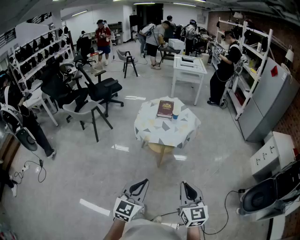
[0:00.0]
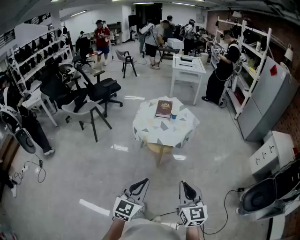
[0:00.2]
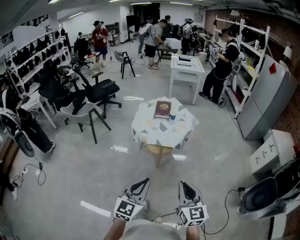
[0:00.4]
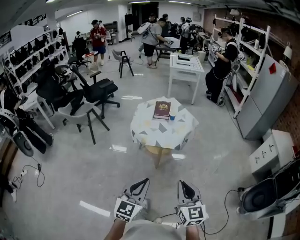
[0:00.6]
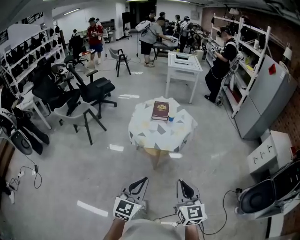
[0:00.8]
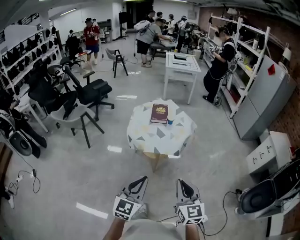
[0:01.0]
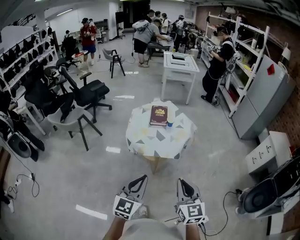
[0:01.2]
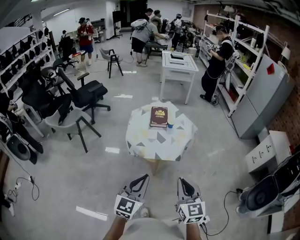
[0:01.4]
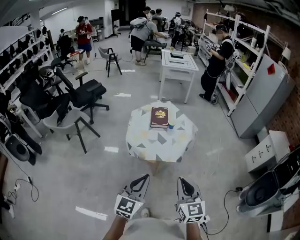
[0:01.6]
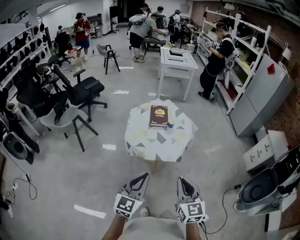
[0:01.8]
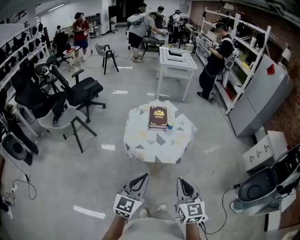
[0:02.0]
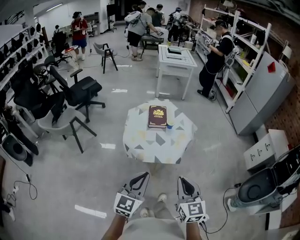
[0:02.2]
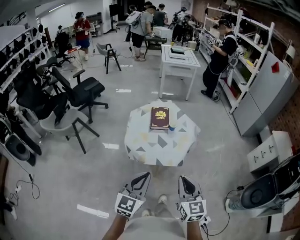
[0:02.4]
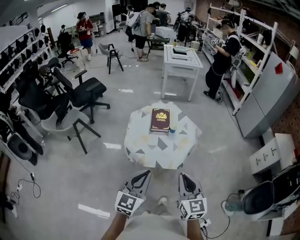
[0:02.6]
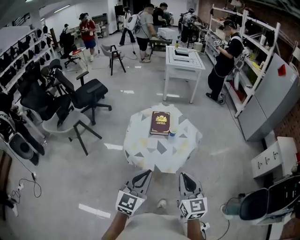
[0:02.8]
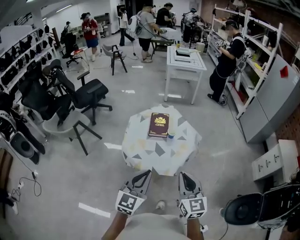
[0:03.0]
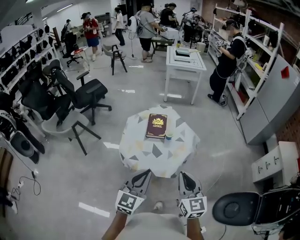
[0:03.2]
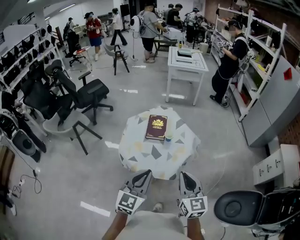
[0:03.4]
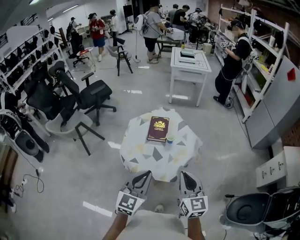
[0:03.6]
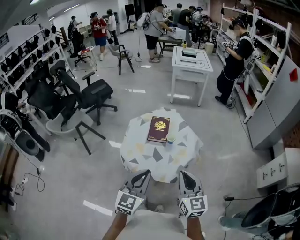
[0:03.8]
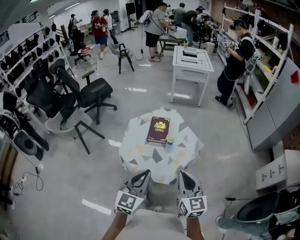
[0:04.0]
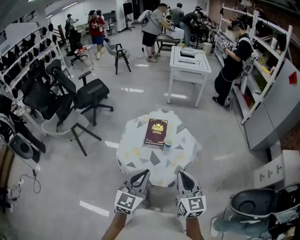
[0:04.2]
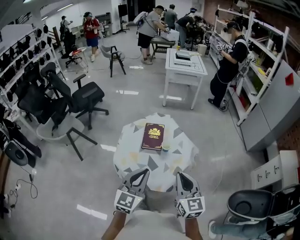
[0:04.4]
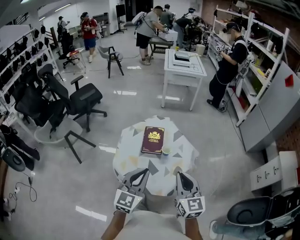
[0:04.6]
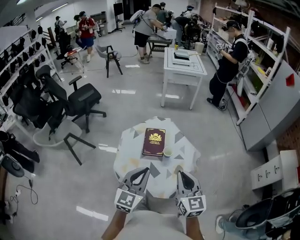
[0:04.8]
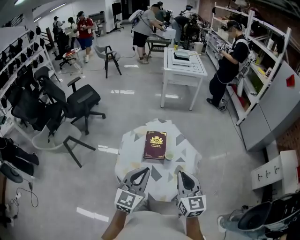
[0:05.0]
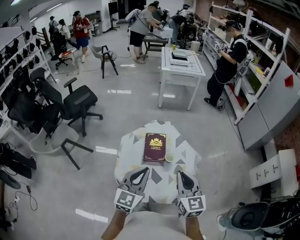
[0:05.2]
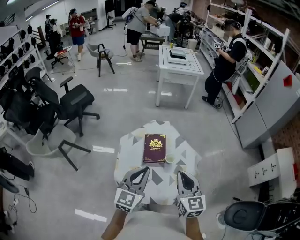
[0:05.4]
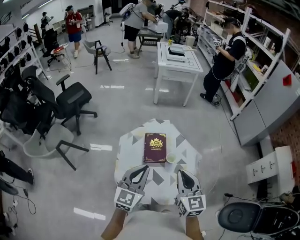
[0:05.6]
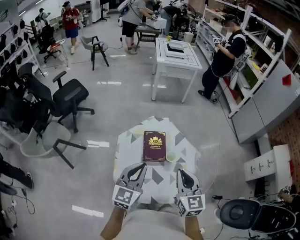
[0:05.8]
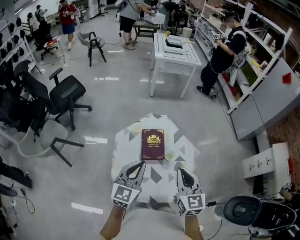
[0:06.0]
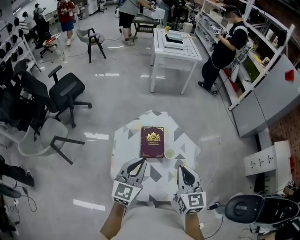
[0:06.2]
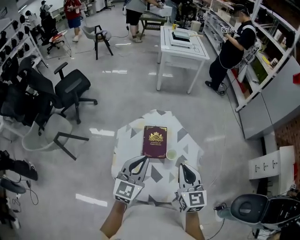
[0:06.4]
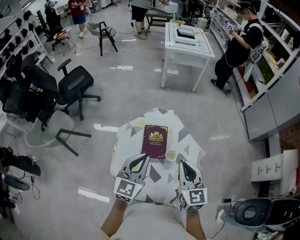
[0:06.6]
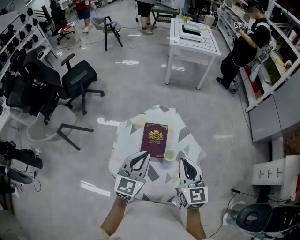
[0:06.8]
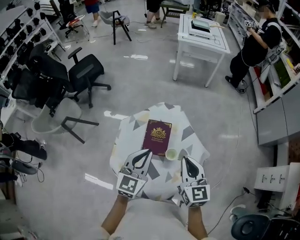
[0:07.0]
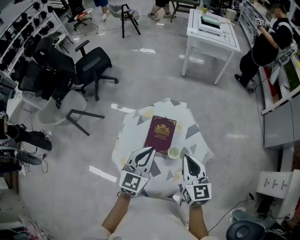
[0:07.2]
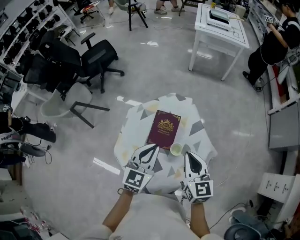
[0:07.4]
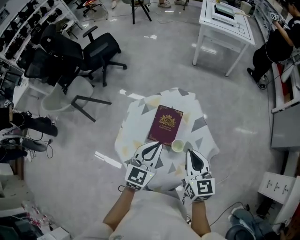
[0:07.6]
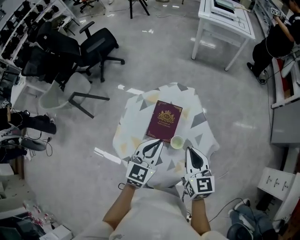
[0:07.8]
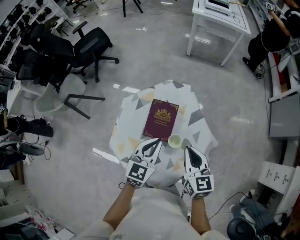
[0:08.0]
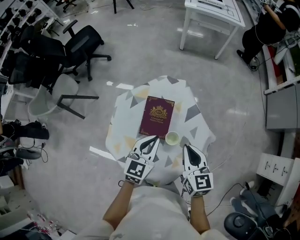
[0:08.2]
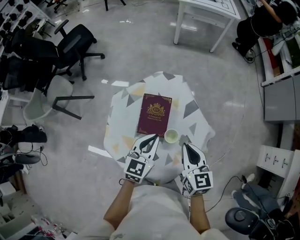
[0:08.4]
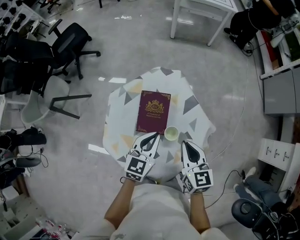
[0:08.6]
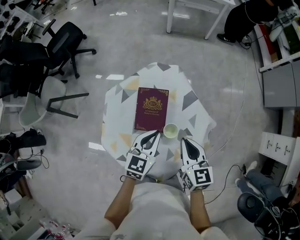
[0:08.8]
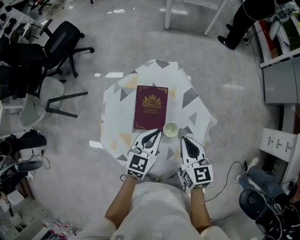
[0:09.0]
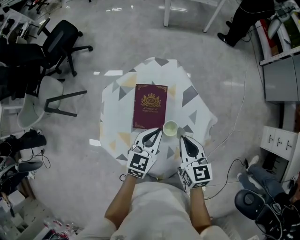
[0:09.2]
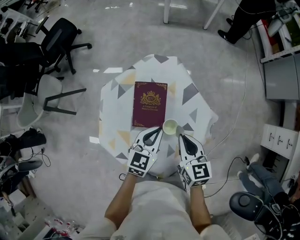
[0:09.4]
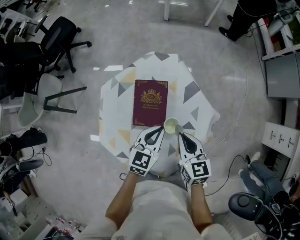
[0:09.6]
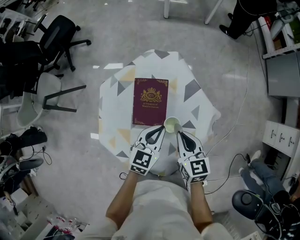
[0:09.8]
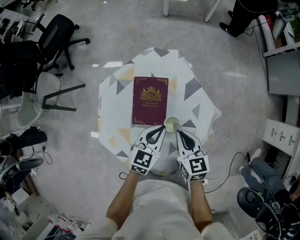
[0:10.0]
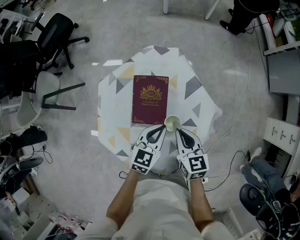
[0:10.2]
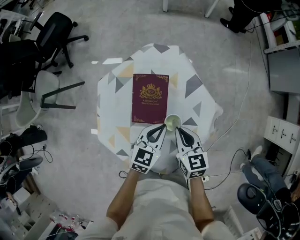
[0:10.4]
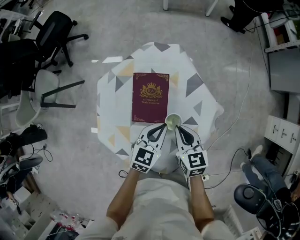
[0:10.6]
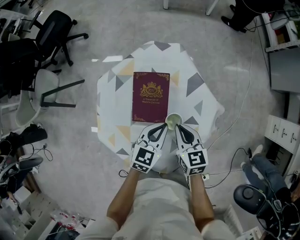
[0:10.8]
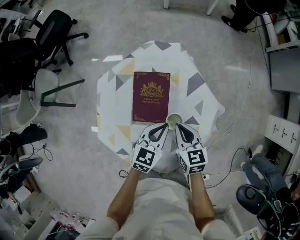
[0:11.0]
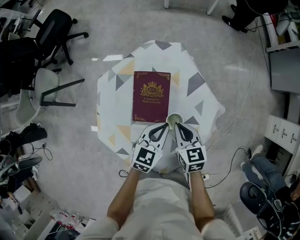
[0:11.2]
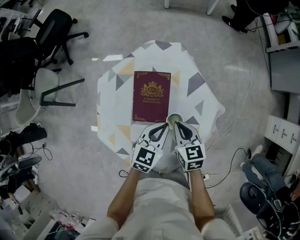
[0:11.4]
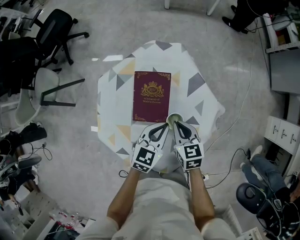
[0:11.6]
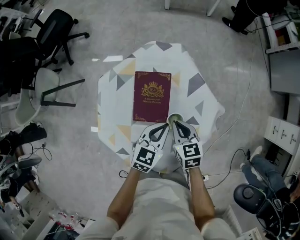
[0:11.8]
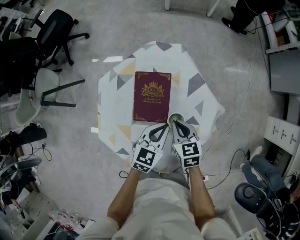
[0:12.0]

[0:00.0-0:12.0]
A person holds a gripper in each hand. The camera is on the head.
0:00.0 to 0:01.6: The right gripper heads forward and to the left, covering about 20 cm; the left gripper is displaced forward by approximately 20 cm.
0:01.6 to 0:03.0: Both grippers move forward, about 15 cm.
0:03.0 to 0:04.4: The two grippers go some 10 cm forward.
0:04.4 to 0:06.0: The grippers both shift forward and to the left by roughly 20 cm.
0:06.0 to 0:07.6: The right gripper heads forward, downward and to the right, covering approximately 15 cm, and rotates some 20 degrees, while the left gripper heads to the right, forward and downward, covering some 15 cm.
0:07.6 to 0:09.0: The grippers both shift downward by about 10 cm.
0:09.0 to 0:10.4: Both grippers travel together downward, approximately 5 cm.
0:10.4 to 0:12.0: The right gripper shifts by some 5 cm.

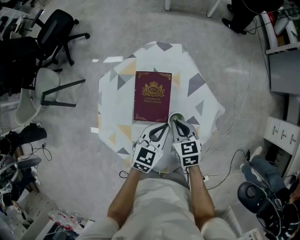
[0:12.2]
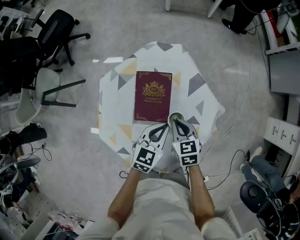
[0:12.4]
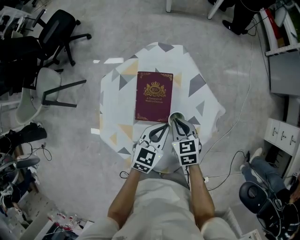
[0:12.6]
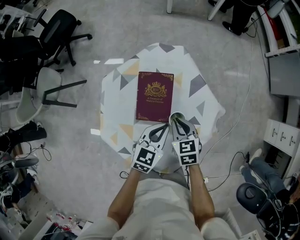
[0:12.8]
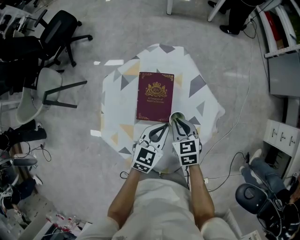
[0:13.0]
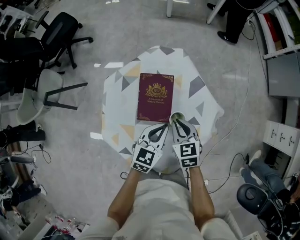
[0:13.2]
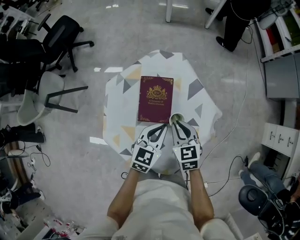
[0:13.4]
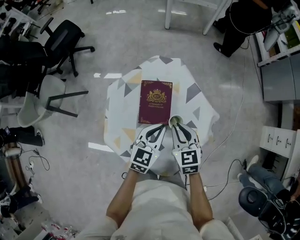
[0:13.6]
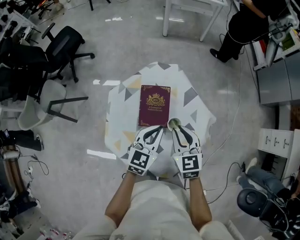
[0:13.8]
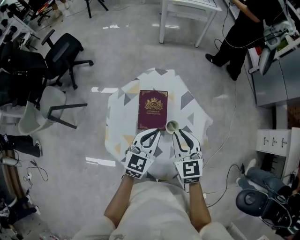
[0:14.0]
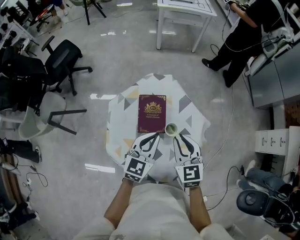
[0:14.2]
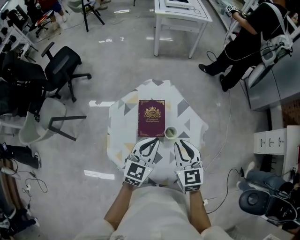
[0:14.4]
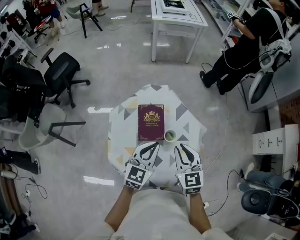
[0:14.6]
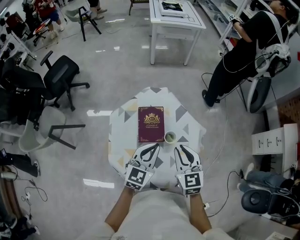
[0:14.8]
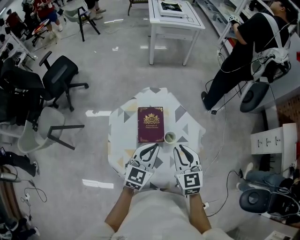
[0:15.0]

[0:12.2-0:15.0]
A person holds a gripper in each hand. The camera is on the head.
0:12.2 to 0:13.6: The two grippers go approximately 10 cm upward.
0:13.6 to 0:15.0: The left gripper is displaced upward by roughly 10 cm; the right gripper moves upward and backward, approximately 15 cm.

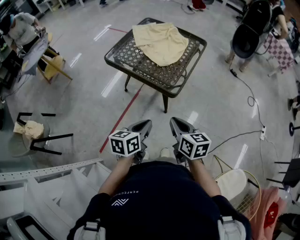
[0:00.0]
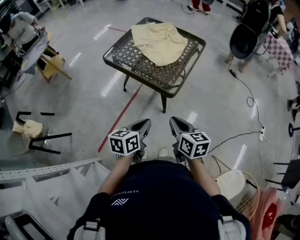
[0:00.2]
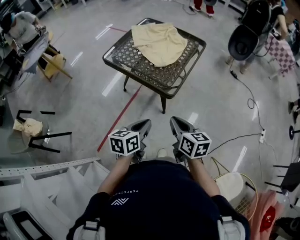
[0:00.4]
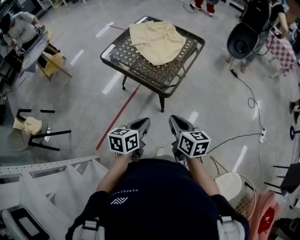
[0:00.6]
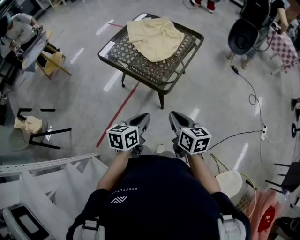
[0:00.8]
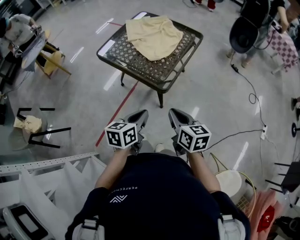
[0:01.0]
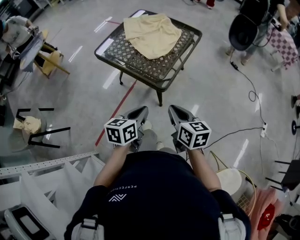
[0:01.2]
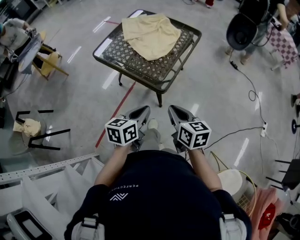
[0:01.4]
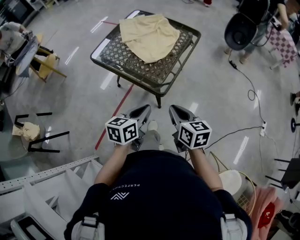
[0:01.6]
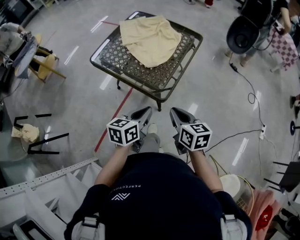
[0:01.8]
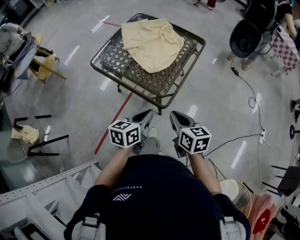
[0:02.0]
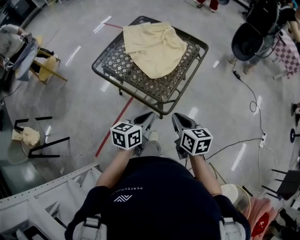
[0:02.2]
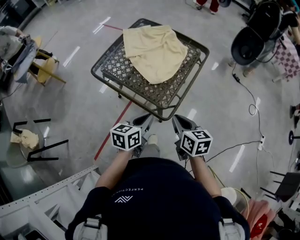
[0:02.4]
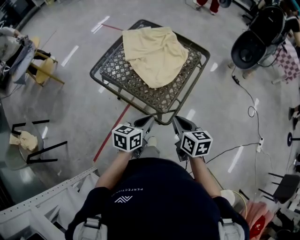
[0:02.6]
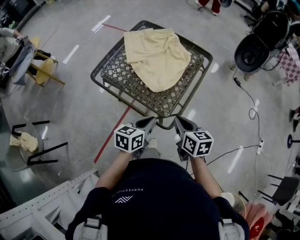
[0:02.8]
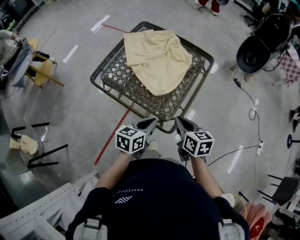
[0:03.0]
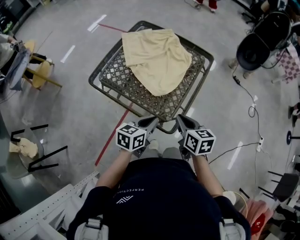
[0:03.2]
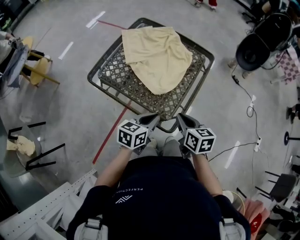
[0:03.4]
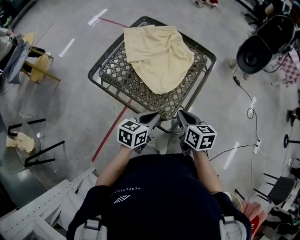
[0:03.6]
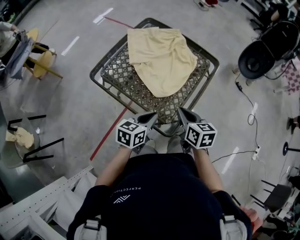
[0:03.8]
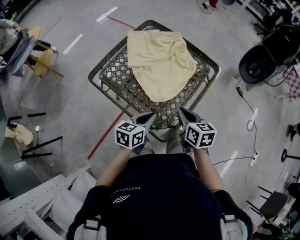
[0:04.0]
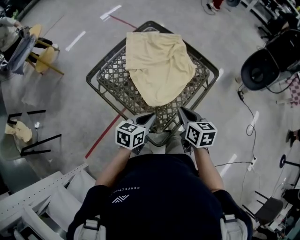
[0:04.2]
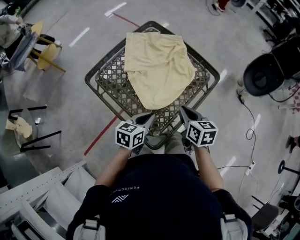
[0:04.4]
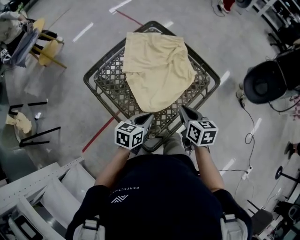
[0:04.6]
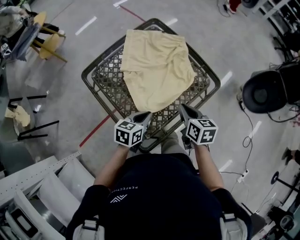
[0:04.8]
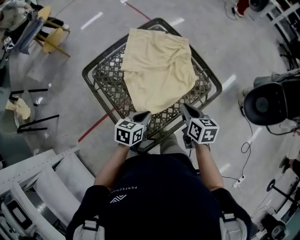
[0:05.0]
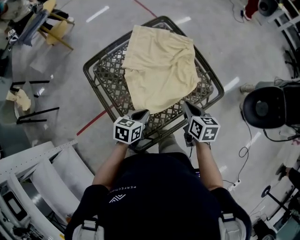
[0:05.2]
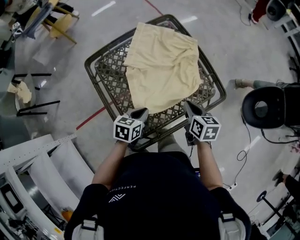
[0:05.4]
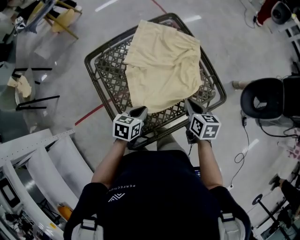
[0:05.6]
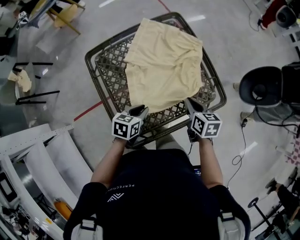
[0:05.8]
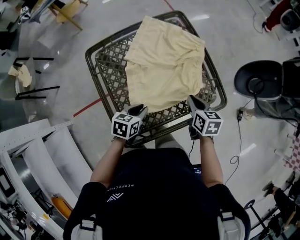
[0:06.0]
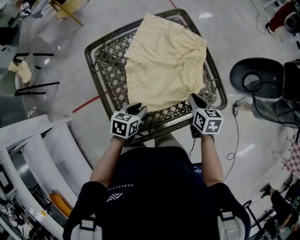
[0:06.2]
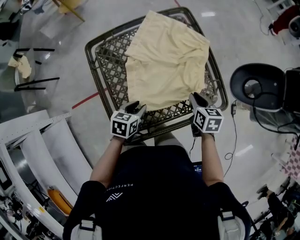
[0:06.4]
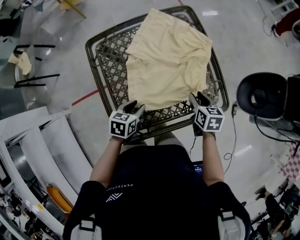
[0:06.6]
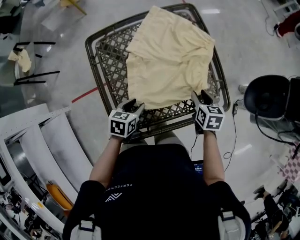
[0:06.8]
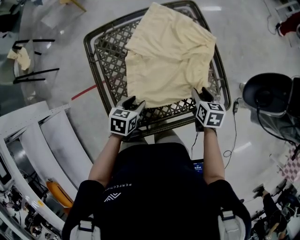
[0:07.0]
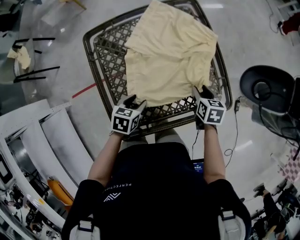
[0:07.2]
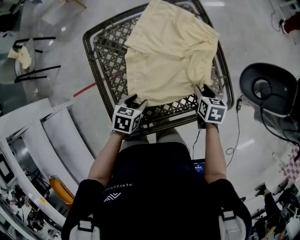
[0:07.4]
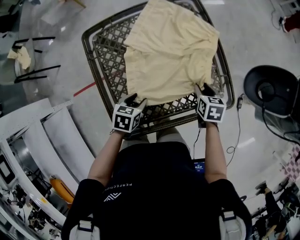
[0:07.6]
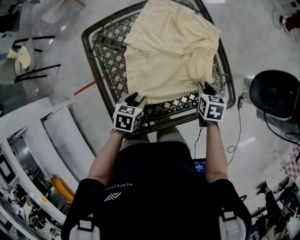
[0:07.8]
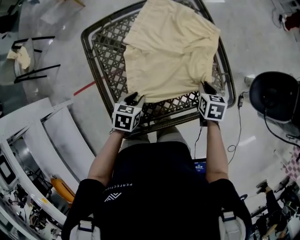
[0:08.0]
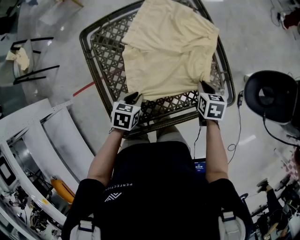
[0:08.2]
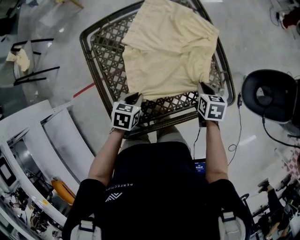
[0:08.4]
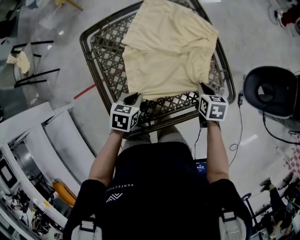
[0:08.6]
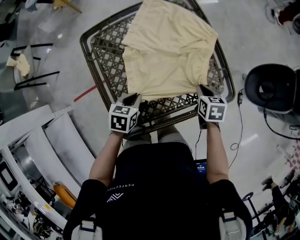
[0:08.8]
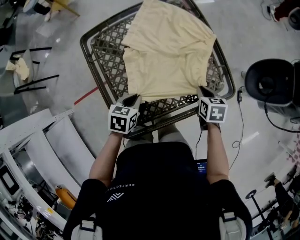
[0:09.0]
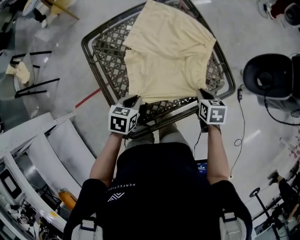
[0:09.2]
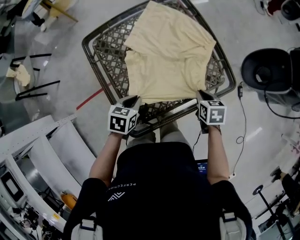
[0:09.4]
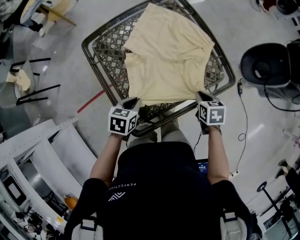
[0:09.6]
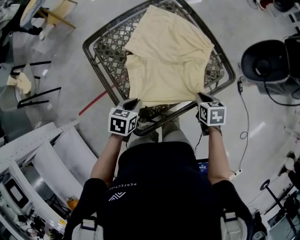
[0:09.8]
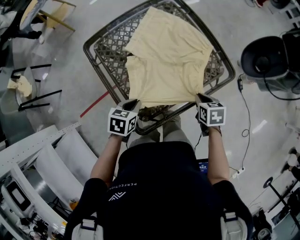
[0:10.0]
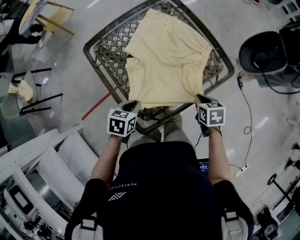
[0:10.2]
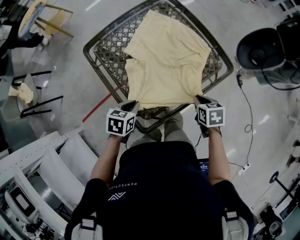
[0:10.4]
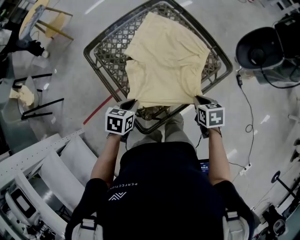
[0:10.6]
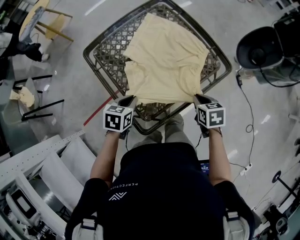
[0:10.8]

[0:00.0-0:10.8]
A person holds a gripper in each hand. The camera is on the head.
0:00.0 to 0:01.6: Both grippers travel together forward and to the right, approximately 10 cm.
0:01.6 to 0:03.0: Both grippers move forward, approximately 15 cm.
0:03.0 to 0:04.6: The grippers both shift forward by approximately 15 cm.
0:04.6 to 0:06.2: The left gripper heads downward and forward, covering approximately 10 cm, swivels some 30 degrees, and opens up. The right gripper goes some 15 cm forward, downward and to the right, and changes its angle by some 20 degrees.
0:06.2 to 0:07.8: The right gripper goes roughly 5 cm downward.
0:07.8 to 0:09.2: The left gripper changes place by about 5 cm, and closes; the right gripper is displaced backward by approximately 10 cm.
0:09.2 to 0:10.8: The right gripper shifts about 10 cm backward. Meanwhile the left gripper moves about 5 cm.
